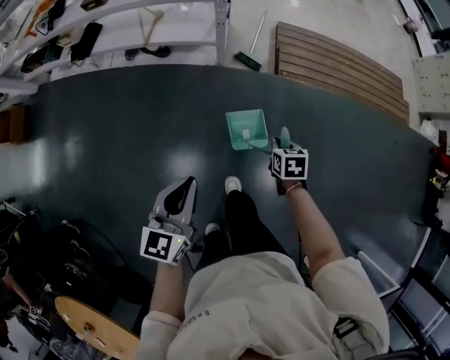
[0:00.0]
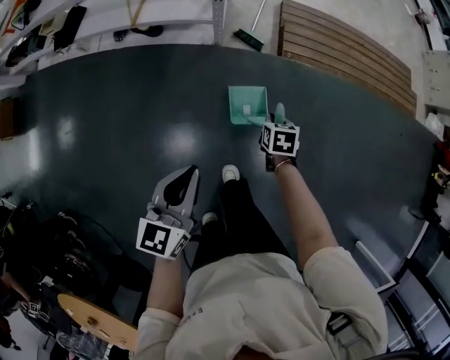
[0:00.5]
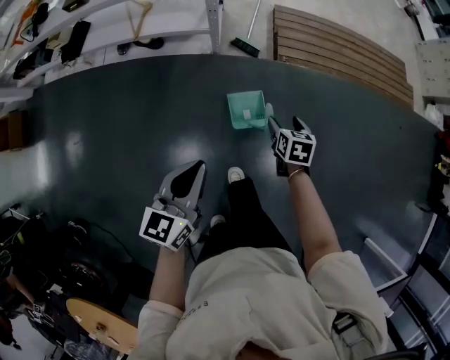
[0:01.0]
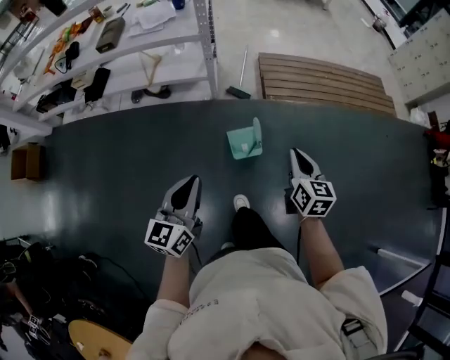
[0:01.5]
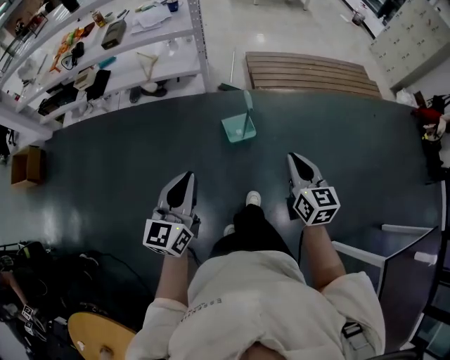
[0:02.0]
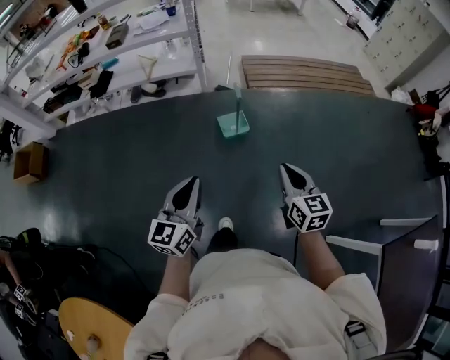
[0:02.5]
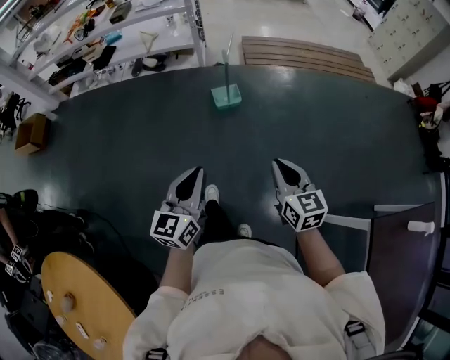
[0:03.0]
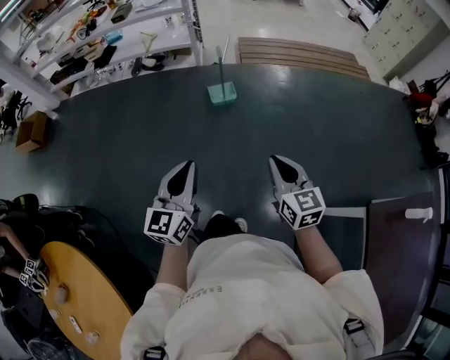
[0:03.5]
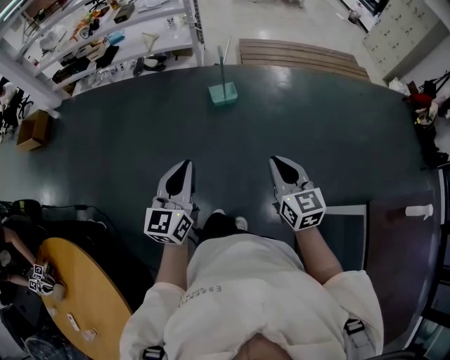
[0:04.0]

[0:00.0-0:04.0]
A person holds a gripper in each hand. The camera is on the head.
0:00.0 to 0:02.0: The left gripper shifts roughly 25 cm backward and upward, while the right gripper travels backward and upward by some 40 cm, angles its fingers upward, by about 40 degrees, and opens, then closes once more.
0:02.0 to 0:04.0: The right gripper shifts roughly 40 cm backward, while the left gripper shifts some 40 cm backward and to the right.

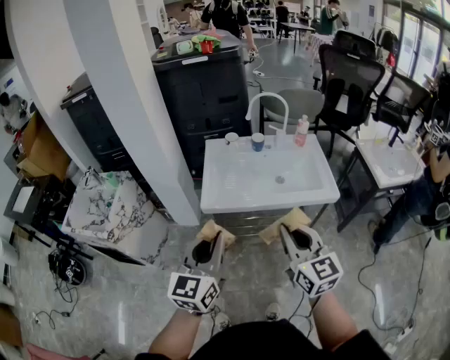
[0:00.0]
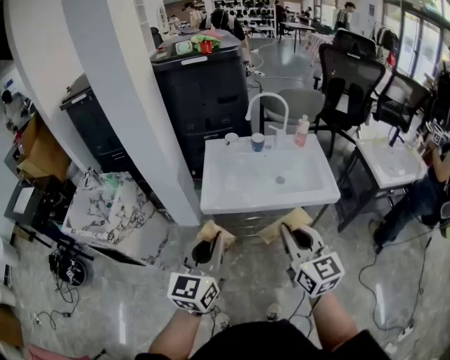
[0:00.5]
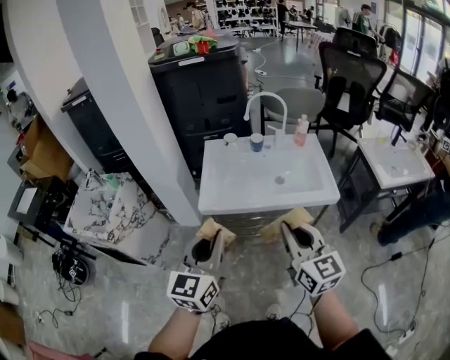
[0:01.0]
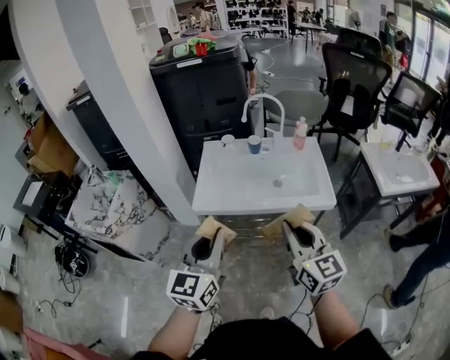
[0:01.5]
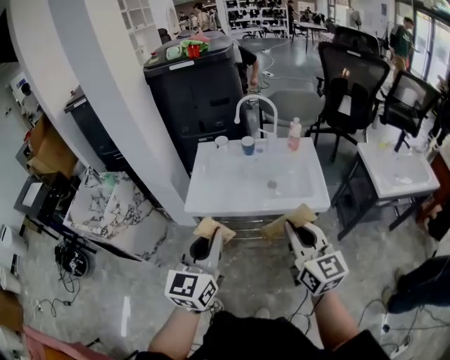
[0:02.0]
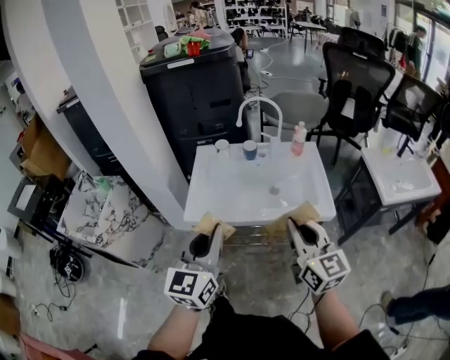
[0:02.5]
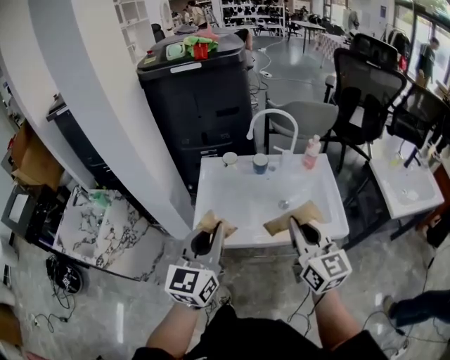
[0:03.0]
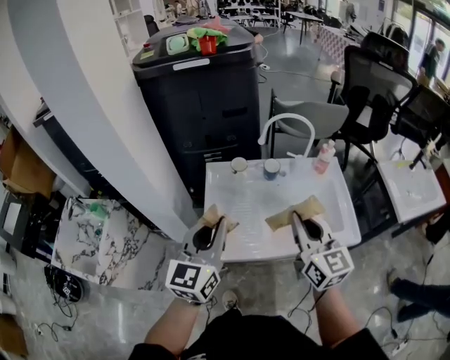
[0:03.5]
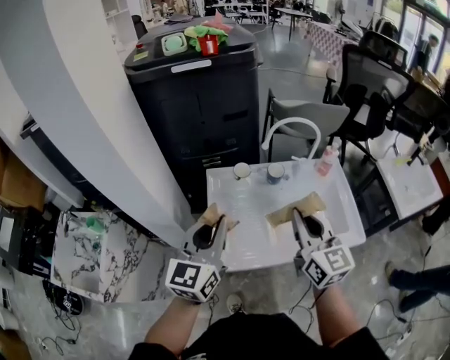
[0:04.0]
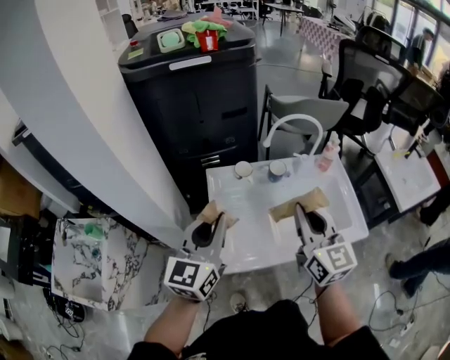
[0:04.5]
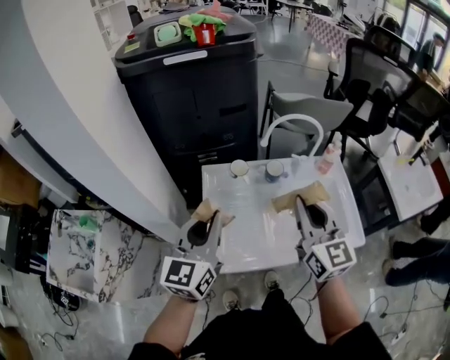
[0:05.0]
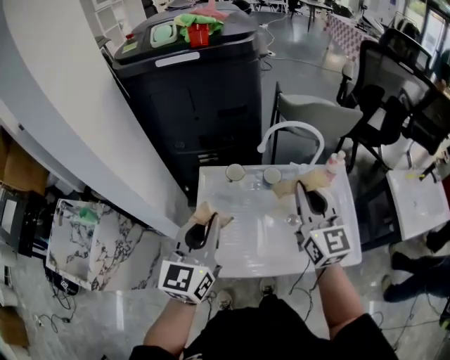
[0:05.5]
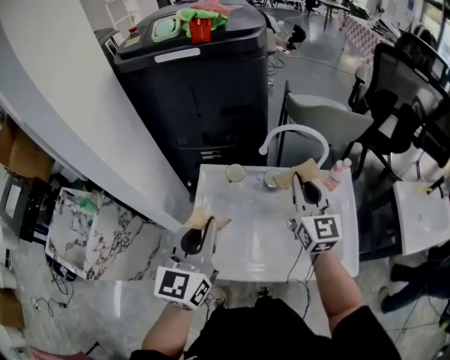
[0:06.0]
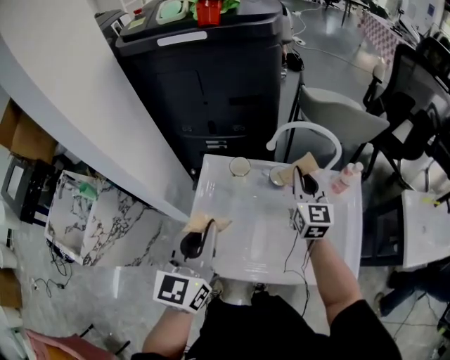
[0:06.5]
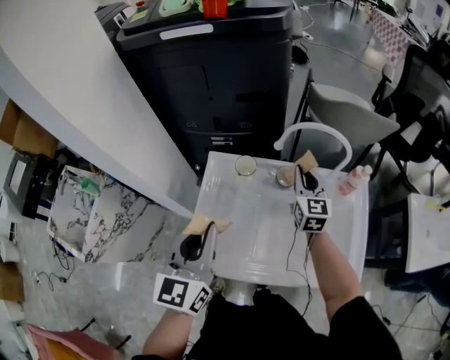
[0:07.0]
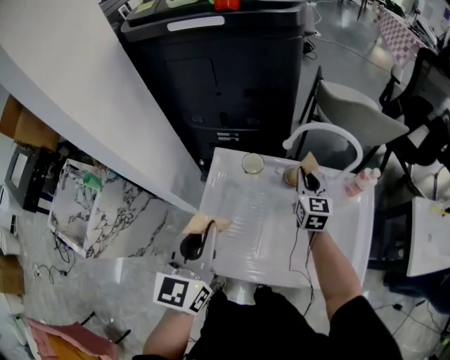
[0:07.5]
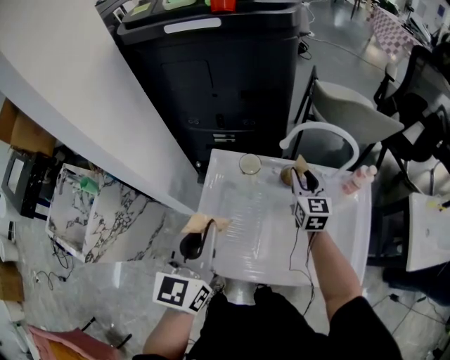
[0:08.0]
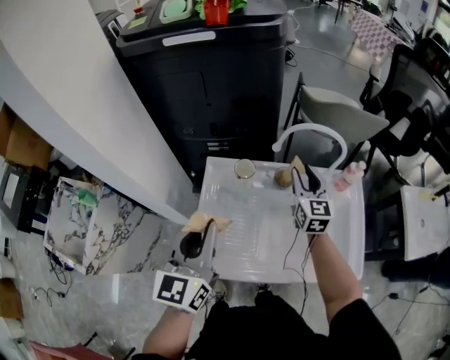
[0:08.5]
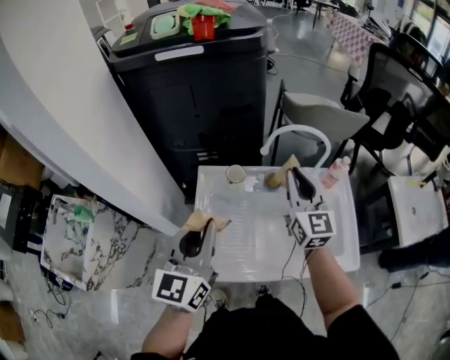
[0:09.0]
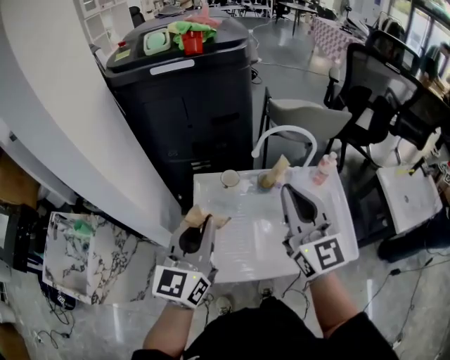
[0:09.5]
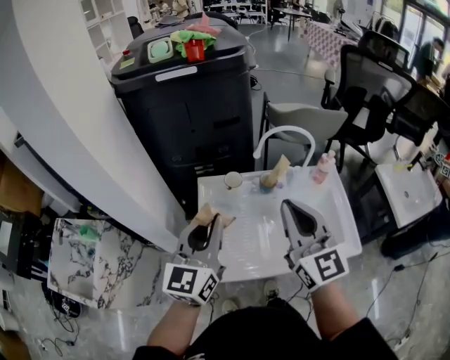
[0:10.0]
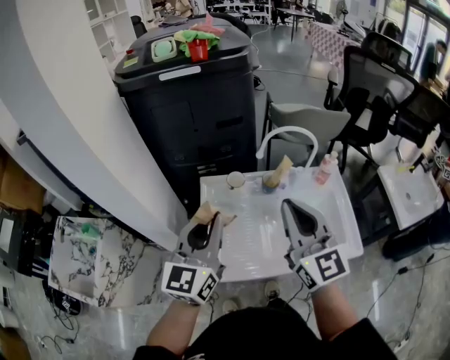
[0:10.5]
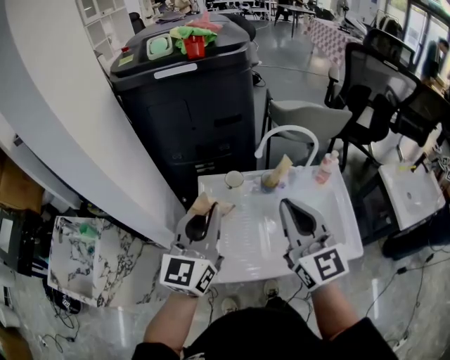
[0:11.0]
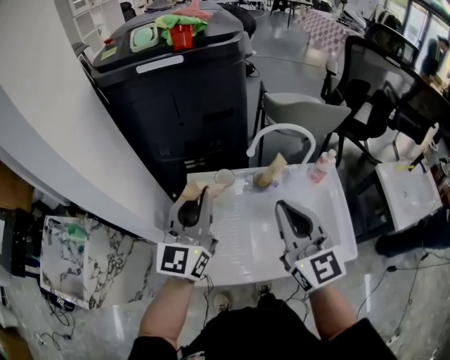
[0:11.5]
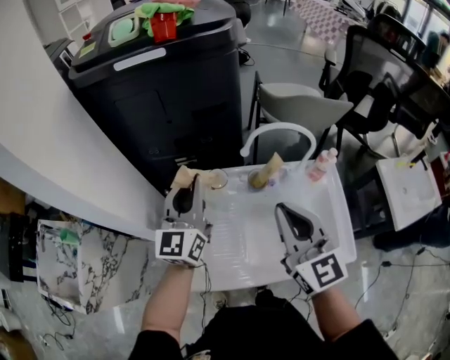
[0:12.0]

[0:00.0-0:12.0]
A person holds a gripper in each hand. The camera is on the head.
0:00.0 to 0:02.0: Both grippers move to the right, approximately 15 cm.
0:02.0 to 0:04.0: Both grippers travel together forward and to the left, some 40 cm.
0:04.0 to 0:06.0: The left gripper shifts about 10 cm to the right and forward. Meanwhile the right gripper goes roughly 20 cm forward.
0:06.0 to 0:08.0: The left gripper changes place by roughly 5 cm. The right gripper shifts roughly 20 cm downward and forward, and opens its fingers.
0:08.0 to 0:10.0: The right gripper travels backward and upward by approximately 35 cm, changes its angle by some 20 degrees, and closes its fingers. The left gripper is displaced upward by approximately 10 cm.
0:10.0 to 0:12.0: The left gripper travels forward by approximately 20 cm; the right gripper shifts approximately 10 cm forward and downward.

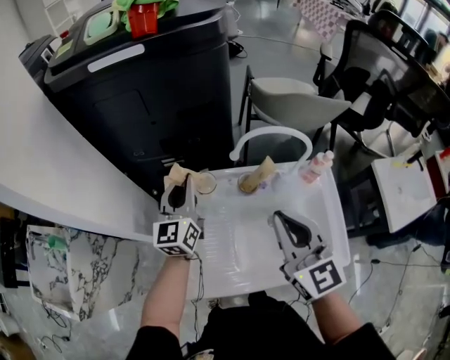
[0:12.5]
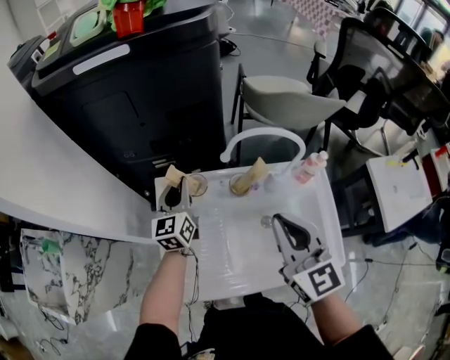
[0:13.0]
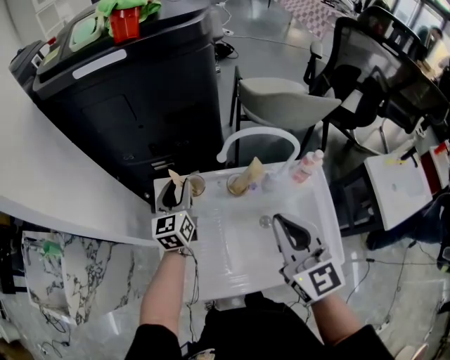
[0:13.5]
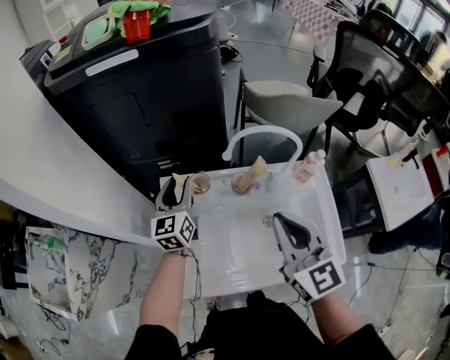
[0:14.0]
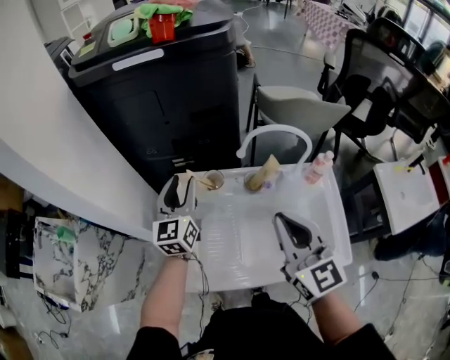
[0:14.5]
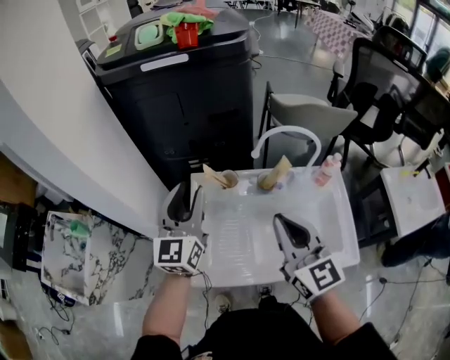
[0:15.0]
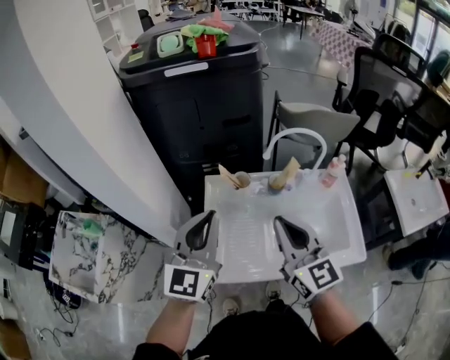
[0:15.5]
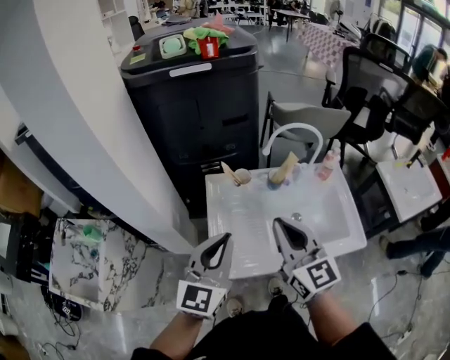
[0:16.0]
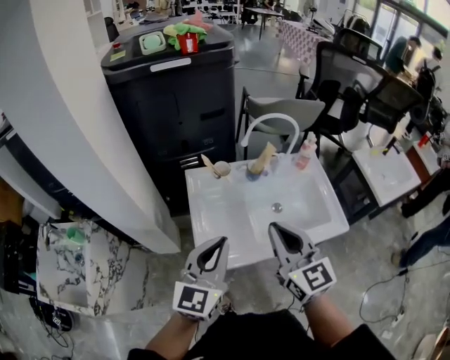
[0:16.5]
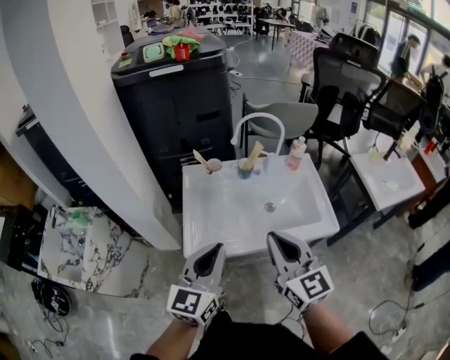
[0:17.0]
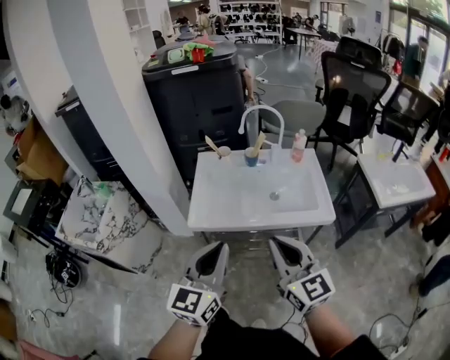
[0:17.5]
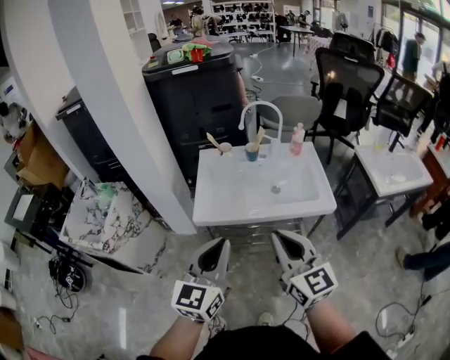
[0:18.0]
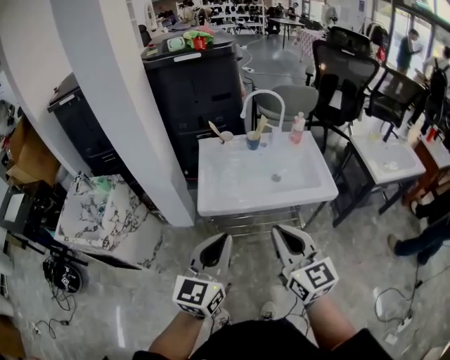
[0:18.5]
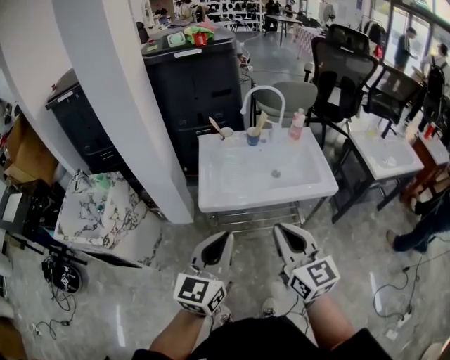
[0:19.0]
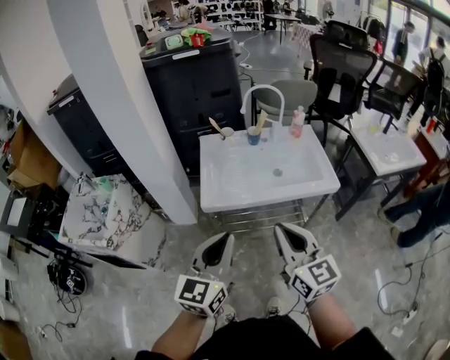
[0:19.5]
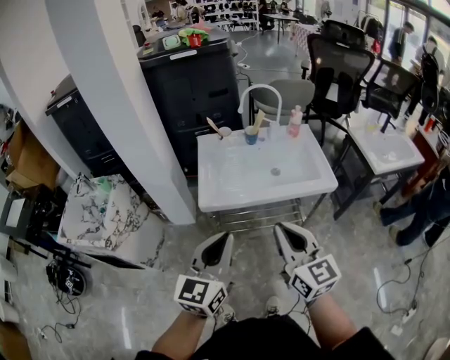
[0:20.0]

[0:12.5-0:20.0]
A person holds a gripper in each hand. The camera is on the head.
0:12.5 to 0:14.5: The left gripper reaches about 5 cm downward, then returns, and opens up.
0:14.5 to 0:16.5: The right gripper shifts some 20 cm backward and to the left. Meanwhile the left gripper shifts approximately 30 cm backward, rotates roughly 30 degrees, and closes its fingers.
0:16.5 to 0:18.0: Both grippers move backward and to the right, about 30 cm.
0:18.0 to 0:20.0: The two grippers go about 5 cm to the left.

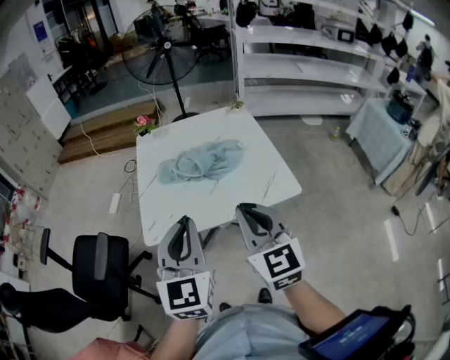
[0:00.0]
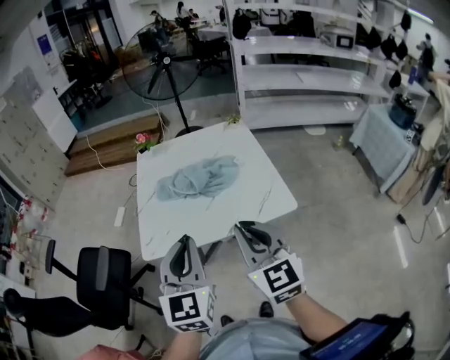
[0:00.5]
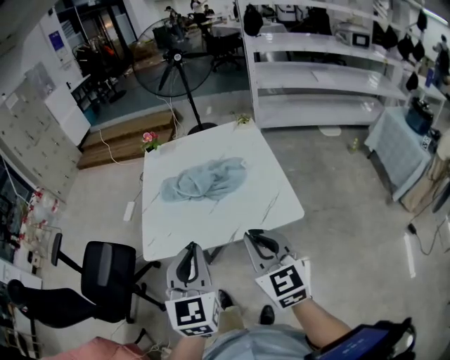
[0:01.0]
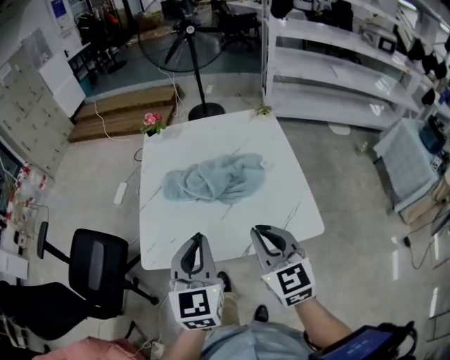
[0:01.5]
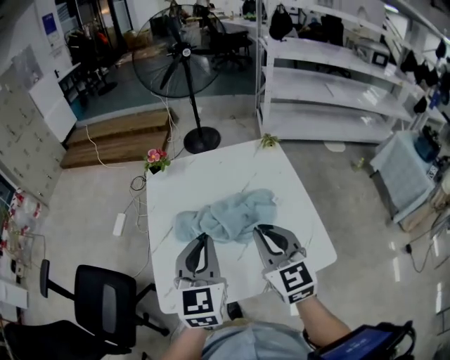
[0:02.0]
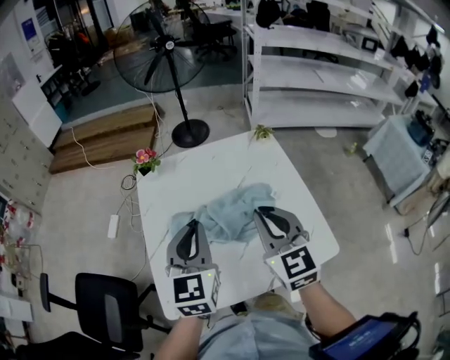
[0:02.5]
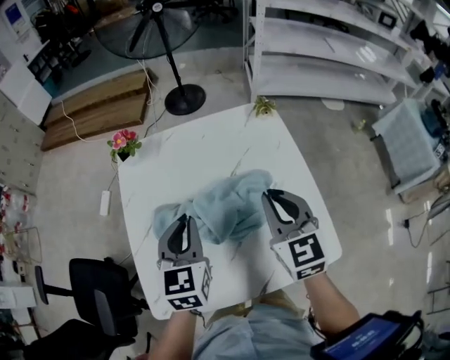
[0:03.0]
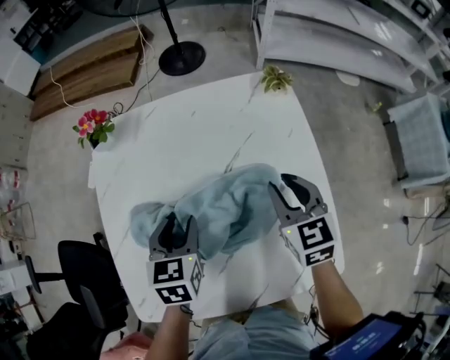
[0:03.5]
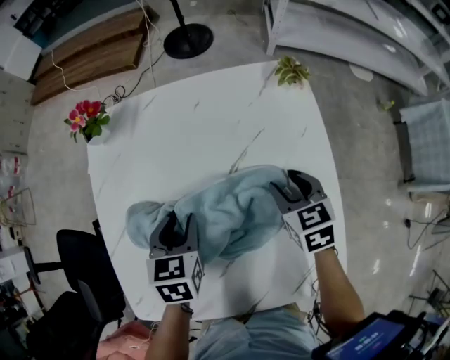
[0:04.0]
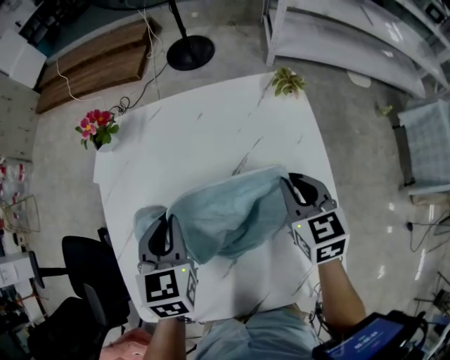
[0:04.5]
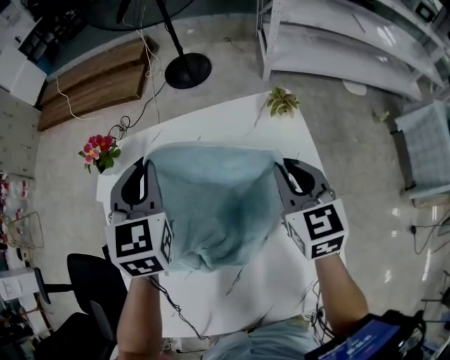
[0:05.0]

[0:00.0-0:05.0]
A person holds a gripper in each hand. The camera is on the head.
0:00.0 to 0:02.5: The two grippers go some 30 cm forward.
0:02.5 to 0:05.0: The left gripper goes roughly 30 cm forward, and opens, then closes once more; the right gripper heads forward, to the right and downward, covering approximately 30 cm, and opens, then closes again.
